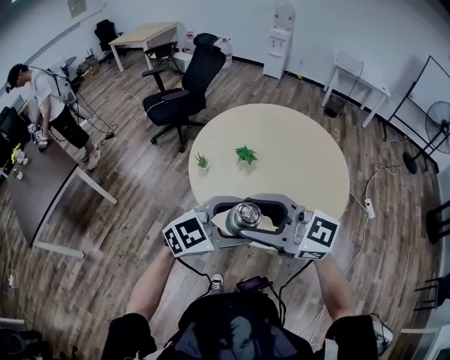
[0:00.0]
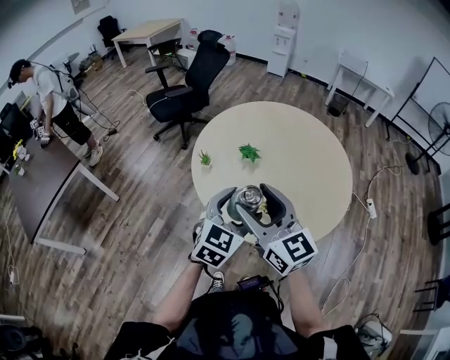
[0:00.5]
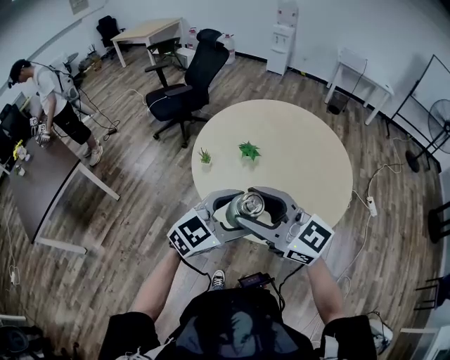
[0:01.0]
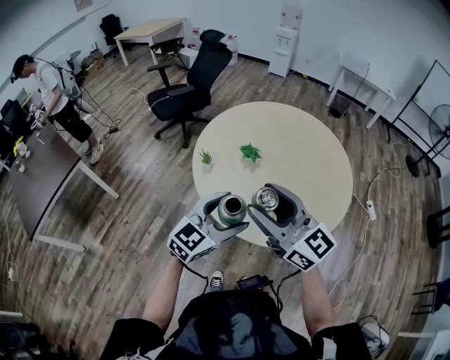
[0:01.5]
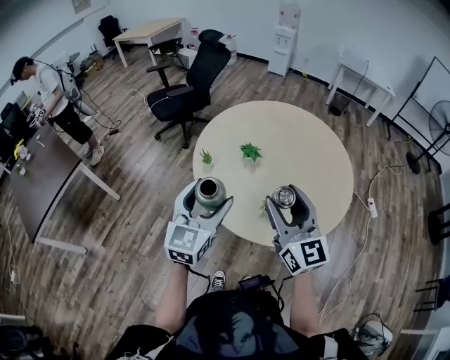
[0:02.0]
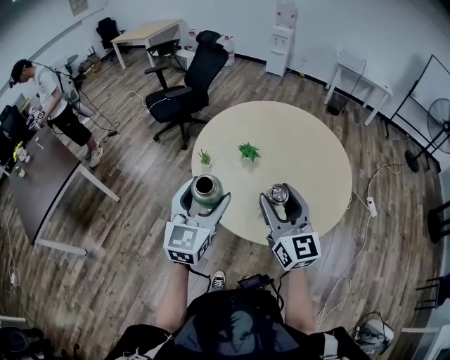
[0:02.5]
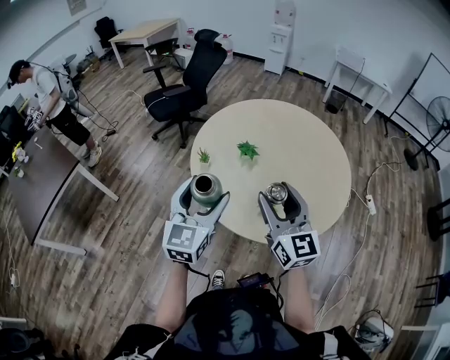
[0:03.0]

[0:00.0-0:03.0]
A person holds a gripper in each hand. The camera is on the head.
0:00.0 to 0:01.5: The left gripper ends up about 5 cm from where it was, and changes its angle by roughly 20 degrees; the right gripper changes its angle by some 30 degrees.
0:01.5 to 0:03.0: The left gripper shifts roughly 5 cm to the left, and turns by some 30 degrees. The right gripper shifts approximately 5 cm downward and to the right, and turns by about 30 degrees.

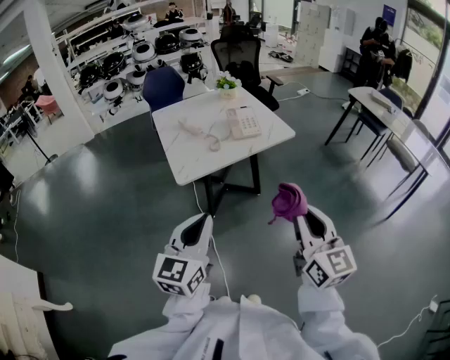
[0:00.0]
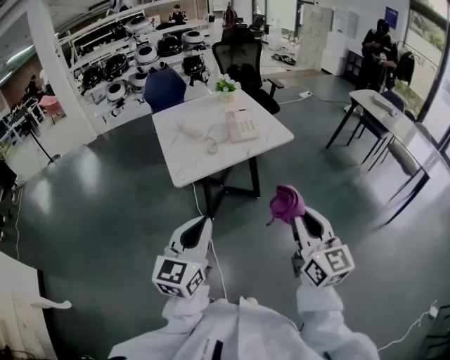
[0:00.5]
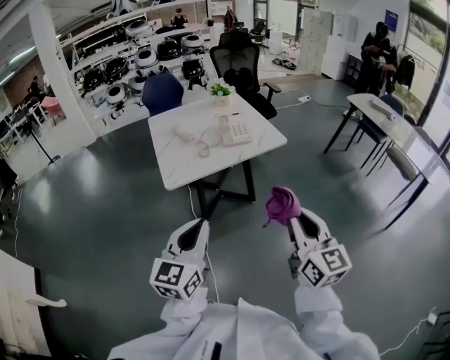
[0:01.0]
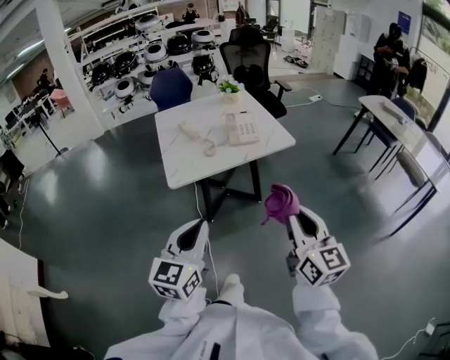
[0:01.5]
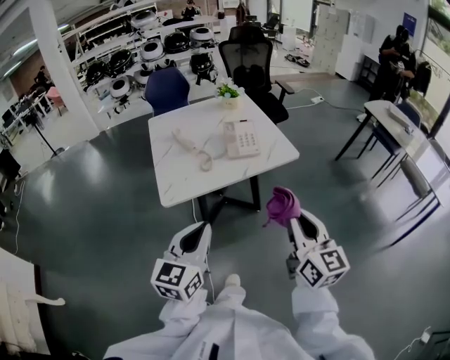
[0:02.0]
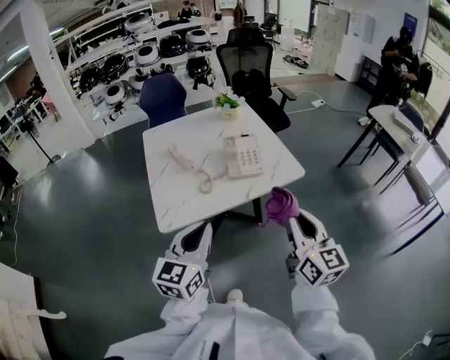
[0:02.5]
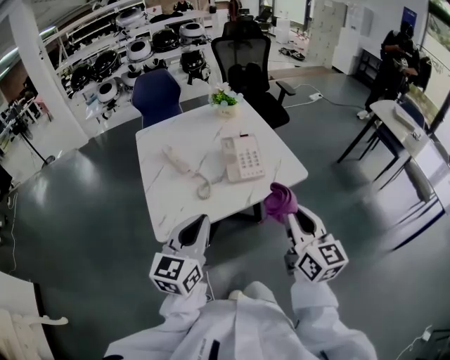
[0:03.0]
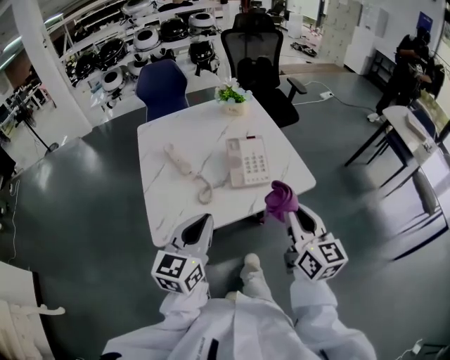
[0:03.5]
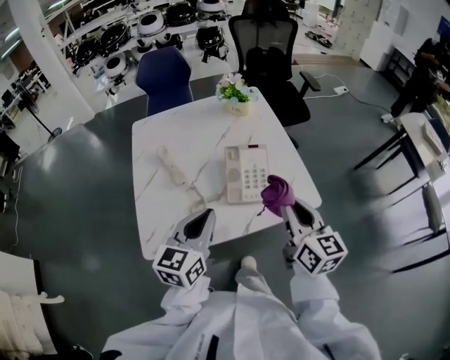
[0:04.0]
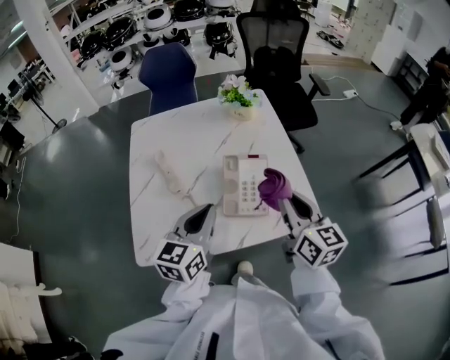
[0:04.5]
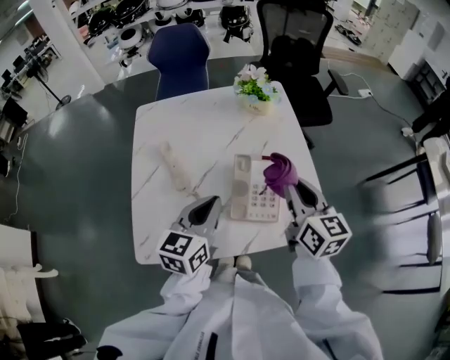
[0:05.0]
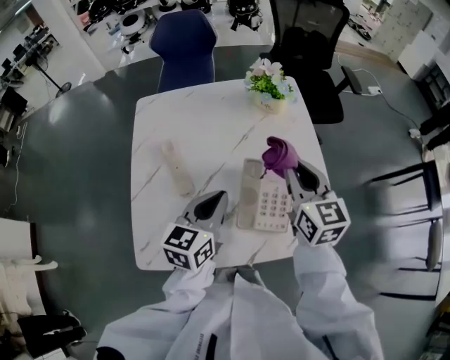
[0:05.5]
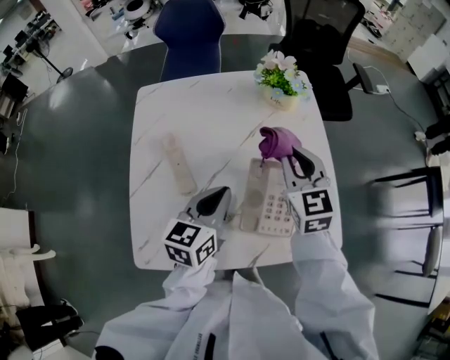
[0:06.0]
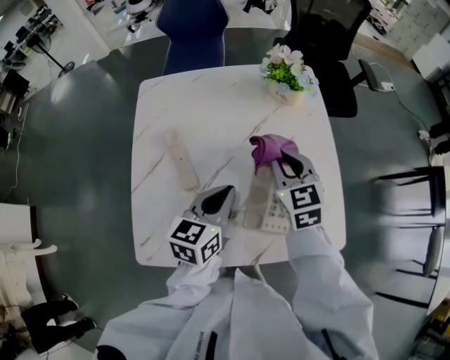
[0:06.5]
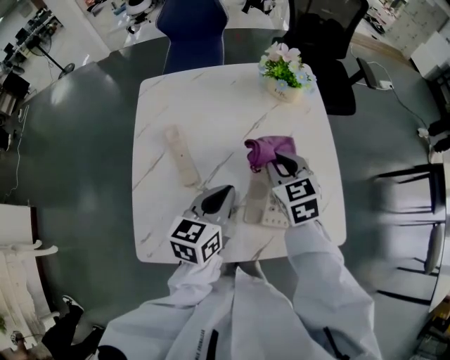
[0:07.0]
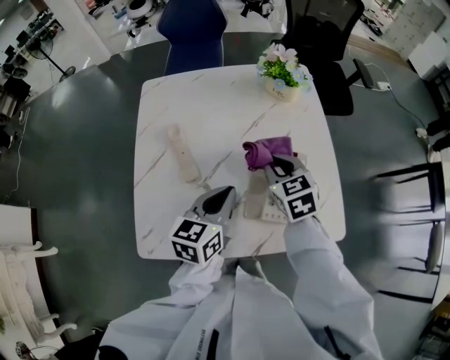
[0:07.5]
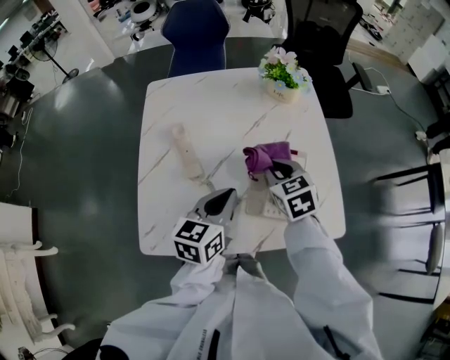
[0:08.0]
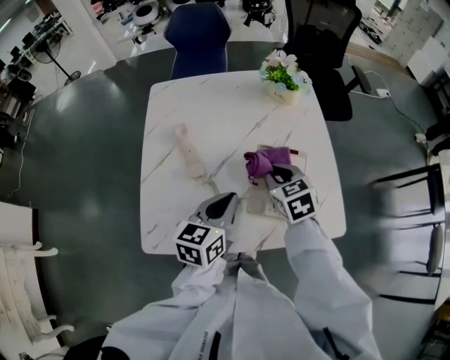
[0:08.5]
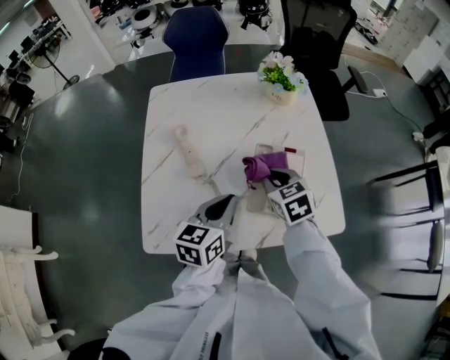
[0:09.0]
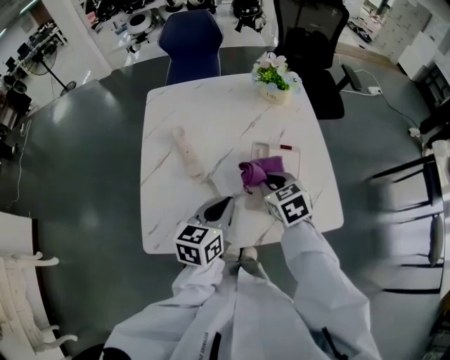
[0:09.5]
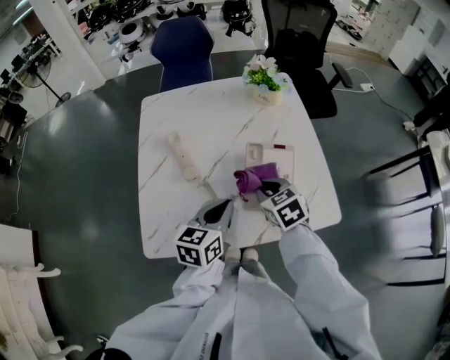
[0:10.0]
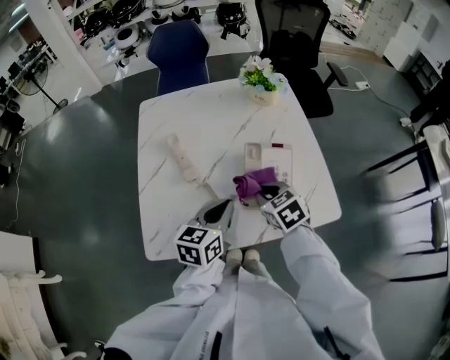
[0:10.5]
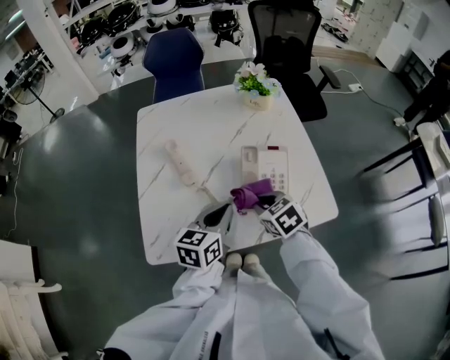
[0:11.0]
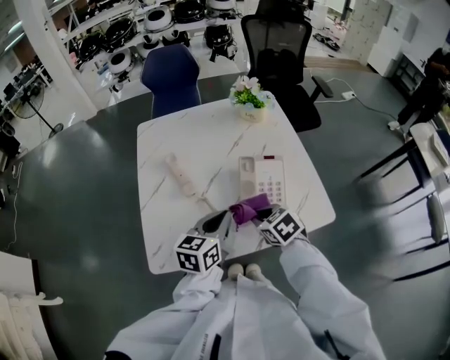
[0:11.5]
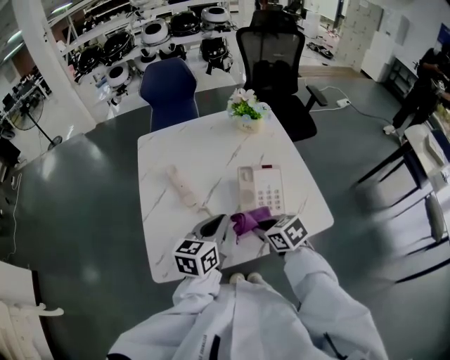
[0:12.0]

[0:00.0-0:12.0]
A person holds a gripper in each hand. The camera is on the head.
0:00.0 to 0:02.0: The left gripper moves forward and to the right, about 15 cm. Meanwhile the right gripper travels forward by about 15 cm.
0:02.0 to 0:04.0: The grippers both shift forward by approximately 35 cm.
0:04.0 to 0:06.0: The left gripper heads forward and downward, covering about 20 cm. Meanwhile the right gripper goes some 30 cm forward, and changes its angle by about 30 degrees.
0:06.0 to 0:08.0: The right gripper goes roughly 10 cm downward and backward, and swivels roughly 20 degrees. Meanwhile the left gripper shifts about 5 cm backward.
0:08.0 to 0:10.0: The right gripper heads backward, covering roughly 10 cm.
0:10.0 to 0:12.0: The right gripper travels backward by roughly 10 cm.

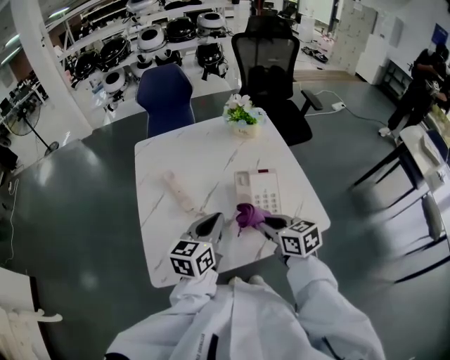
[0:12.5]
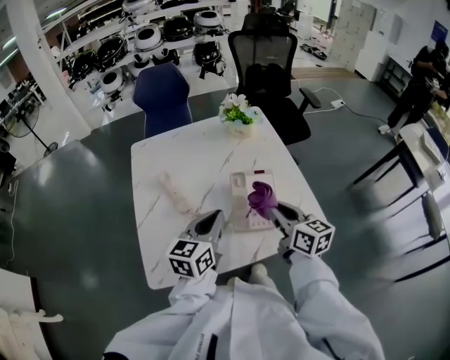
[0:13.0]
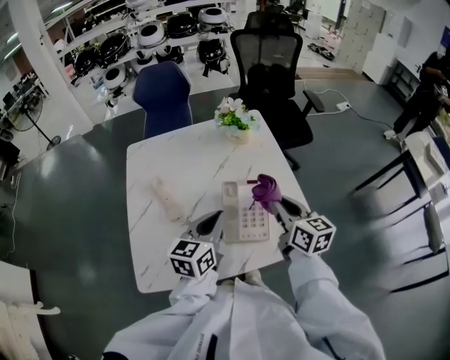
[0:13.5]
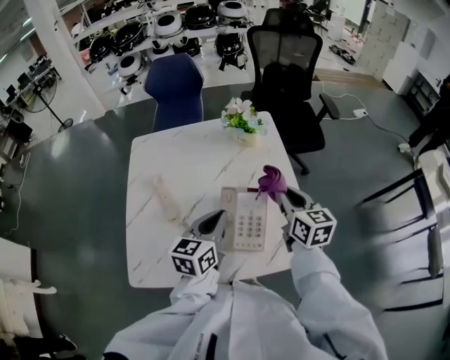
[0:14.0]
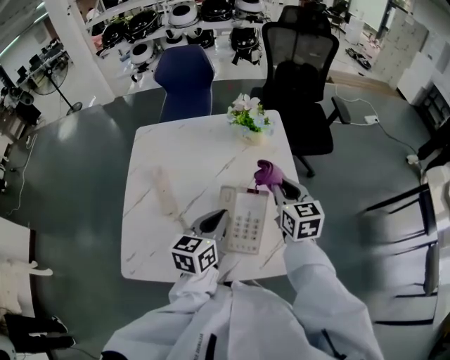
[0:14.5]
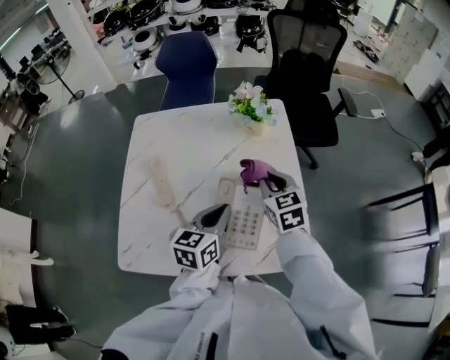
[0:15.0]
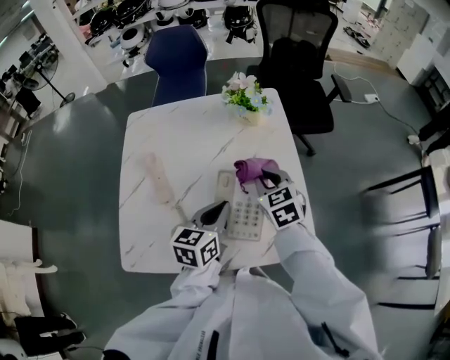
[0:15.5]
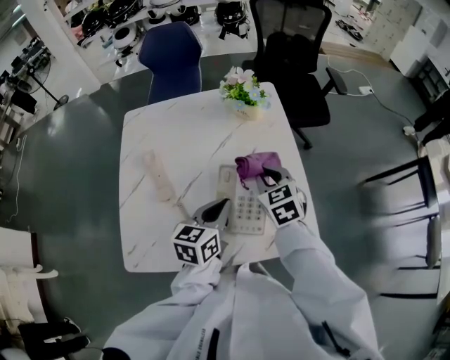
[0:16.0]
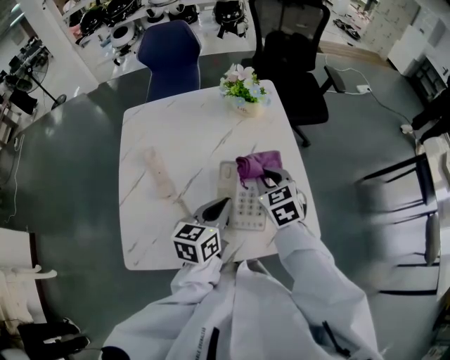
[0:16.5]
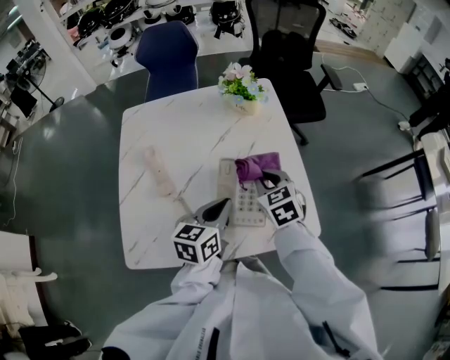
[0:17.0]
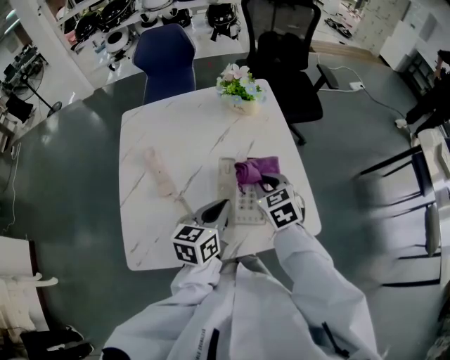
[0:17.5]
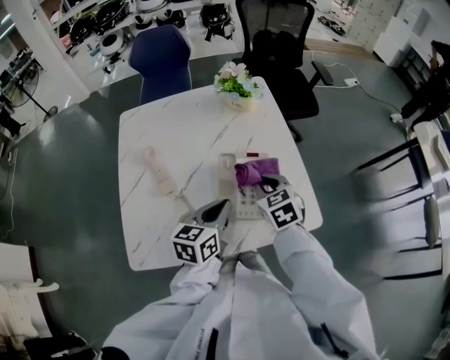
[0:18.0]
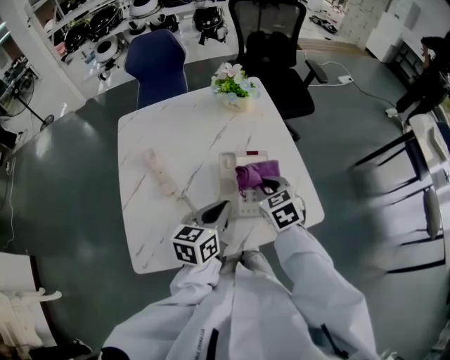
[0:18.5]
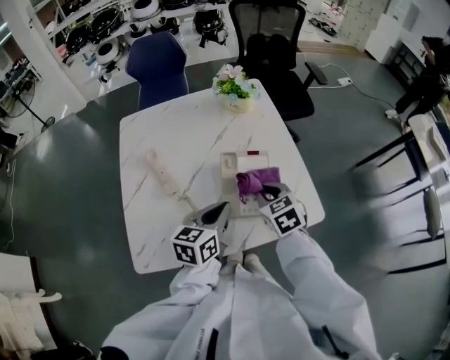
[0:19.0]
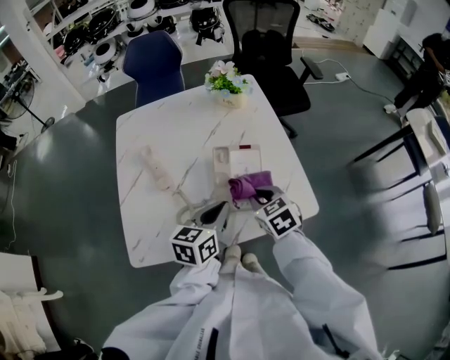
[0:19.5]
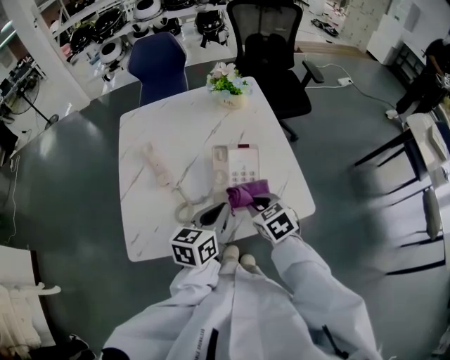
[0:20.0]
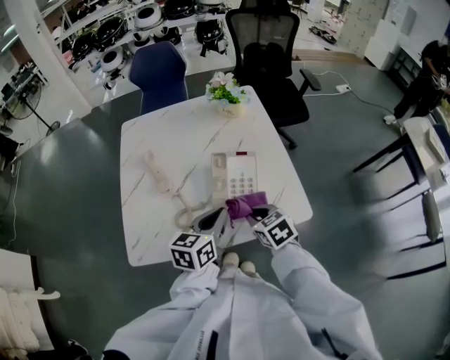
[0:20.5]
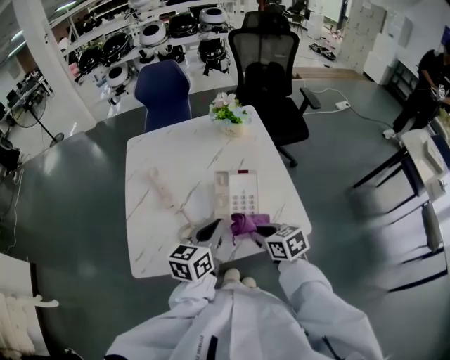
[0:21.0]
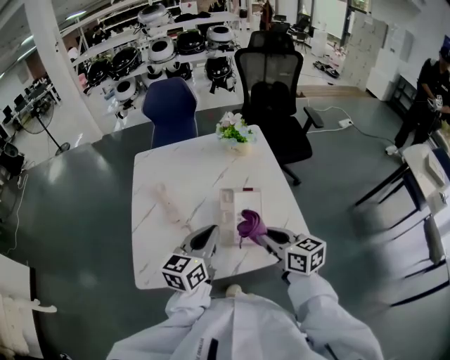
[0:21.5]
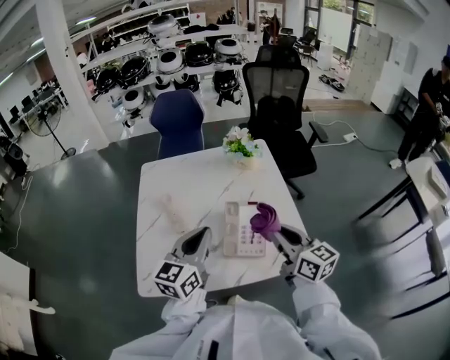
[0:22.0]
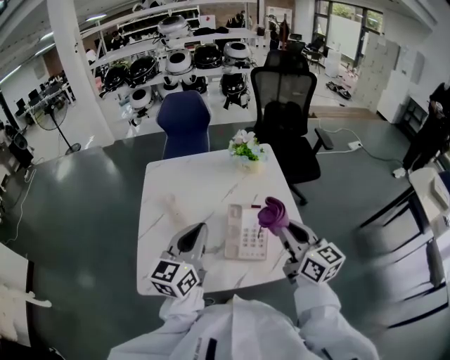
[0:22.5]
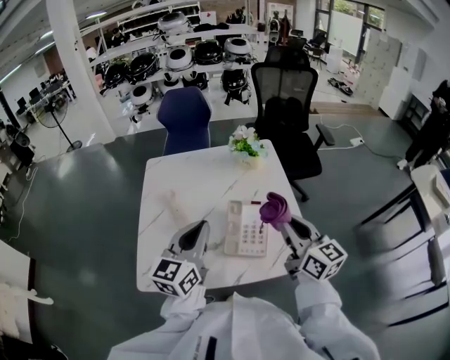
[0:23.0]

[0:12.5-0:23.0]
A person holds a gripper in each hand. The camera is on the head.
0:12.5 to 0:14.5: The right gripper moves forward and to the right, approximately 25 cm, and swivels about 20 degrees, while the left gripper heads to the right and forward, covering roughly 15 cm.
0:14.5 to 0:16.5: The right gripper shifts some 10 cm downward and to the left, and swivels roughly 20 degrees.
0:16.5 to 0:19.0: The right gripper is displaced backward by some 10 cm. The left gripper heads backward, covering about 5 cm.
0:19.0 to 0:21.0: The right gripper goes some 10 cm backward, and changes its angle by roughly 30 degrees, while the left gripper ends up some 5 cm from where it was.
0:21.0 to 0:23.0: The left gripper shifts some 15 cm upward and to the left, and rotates about 20 degrees. Meanwhile the right gripper shifts roughly 20 cm upward, and points its fingers roughly 40 degrees further upward.

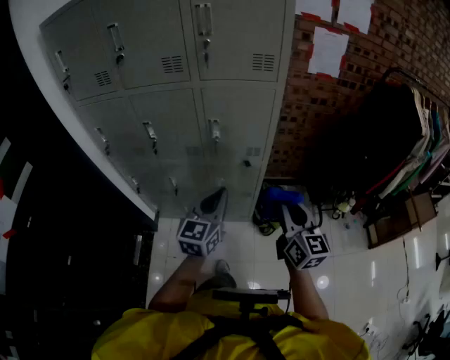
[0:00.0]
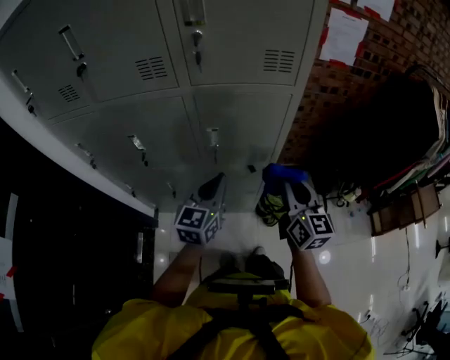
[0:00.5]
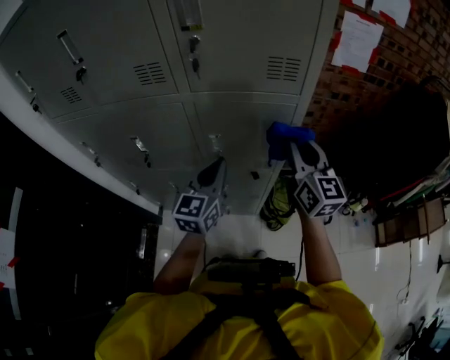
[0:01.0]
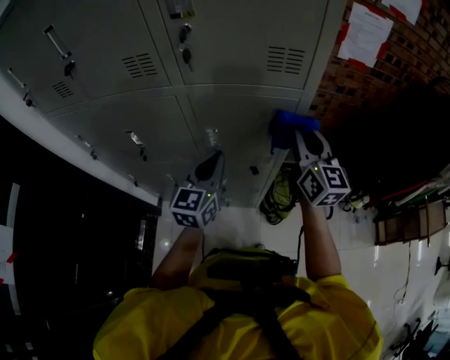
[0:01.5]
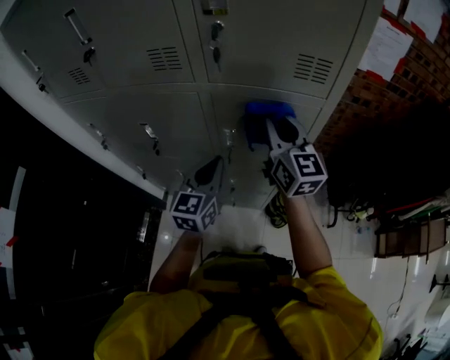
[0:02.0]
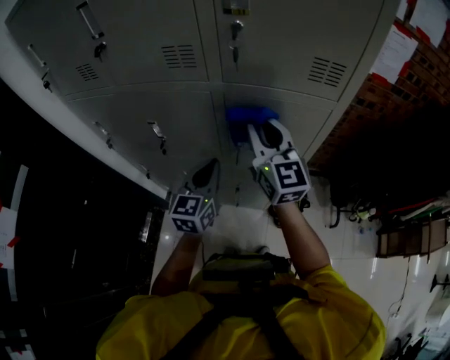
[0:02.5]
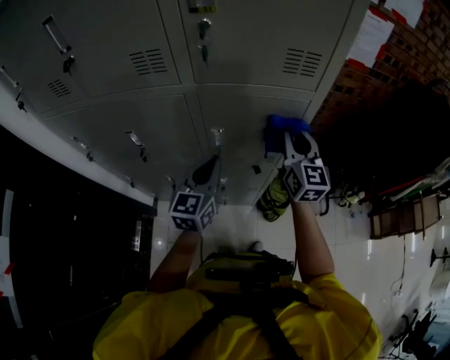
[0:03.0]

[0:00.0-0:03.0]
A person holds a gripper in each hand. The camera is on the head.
0:00.0 to 0:01.5: The grippers both shift forward by approximately 30 cm.
0:01.5 to 0:03.0: The right gripper goes to the left and returns, roughly 20 cm each way.
